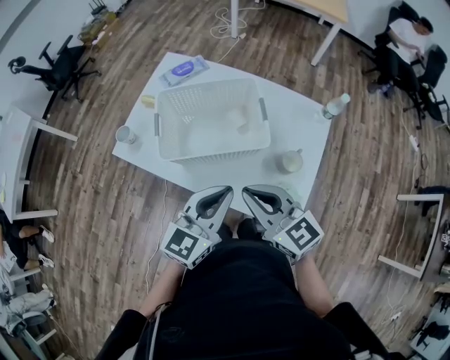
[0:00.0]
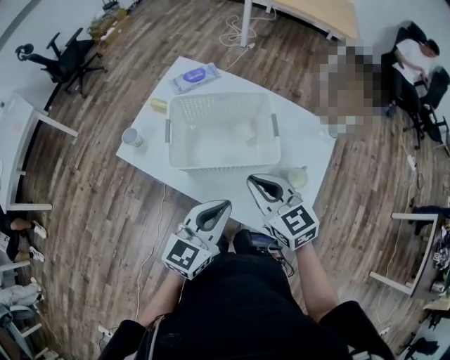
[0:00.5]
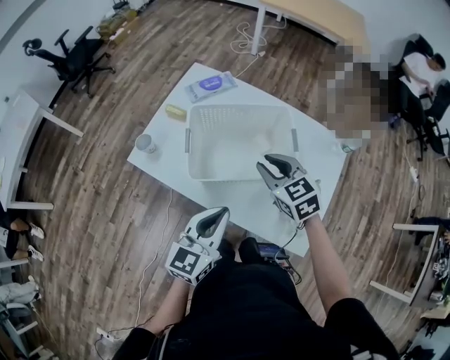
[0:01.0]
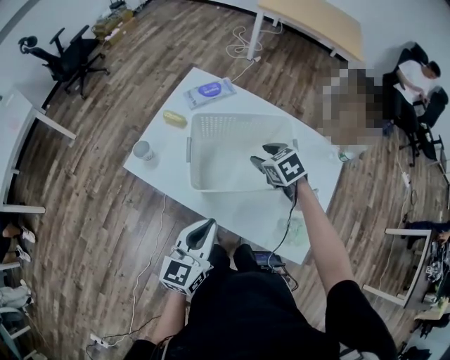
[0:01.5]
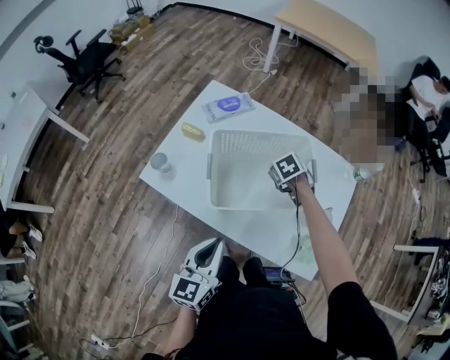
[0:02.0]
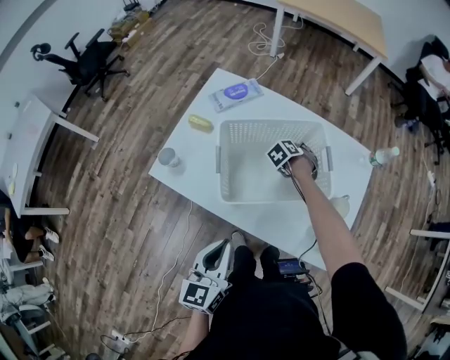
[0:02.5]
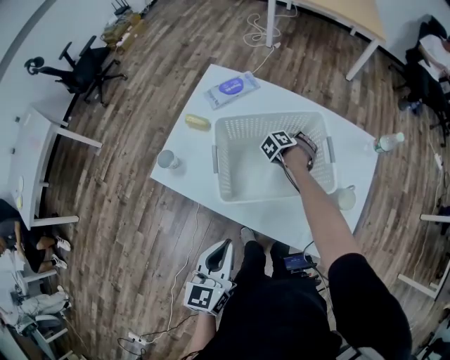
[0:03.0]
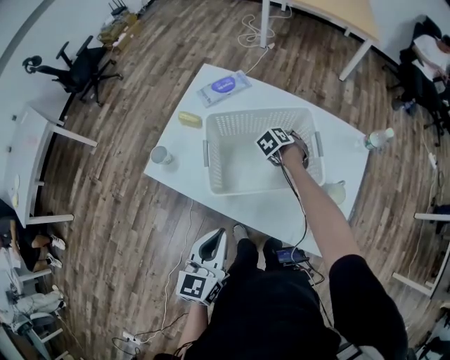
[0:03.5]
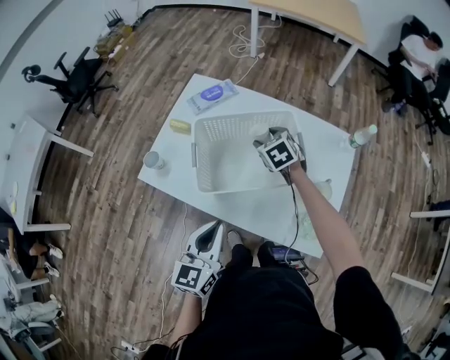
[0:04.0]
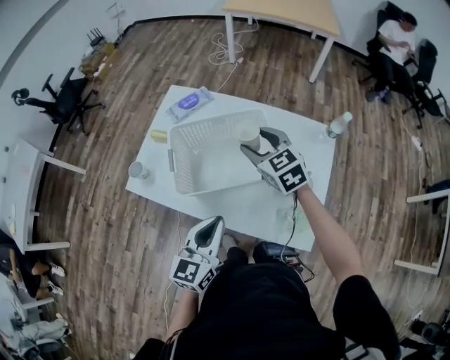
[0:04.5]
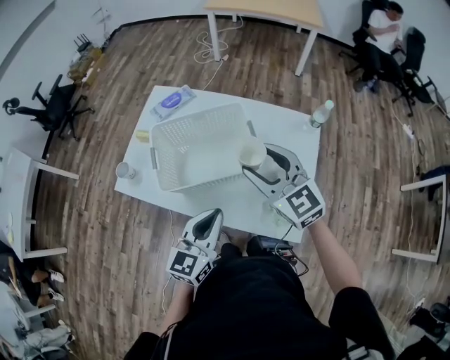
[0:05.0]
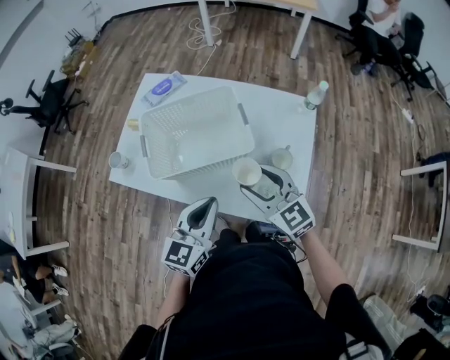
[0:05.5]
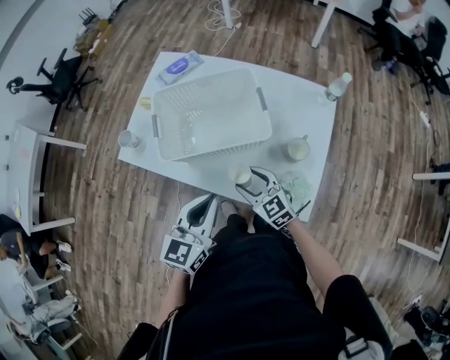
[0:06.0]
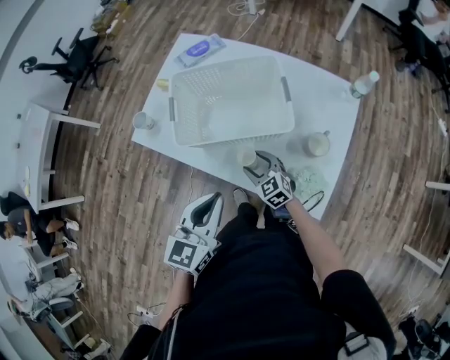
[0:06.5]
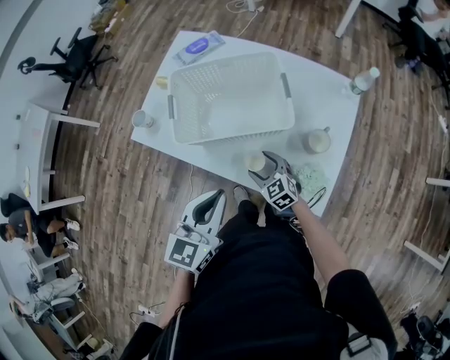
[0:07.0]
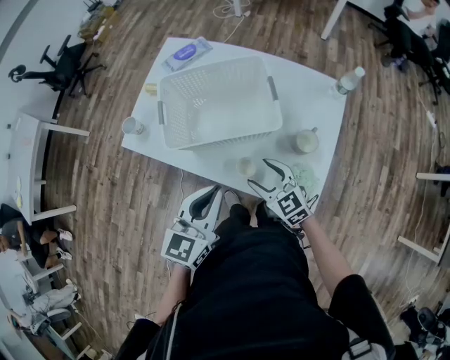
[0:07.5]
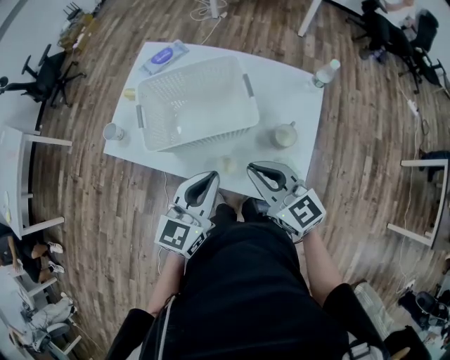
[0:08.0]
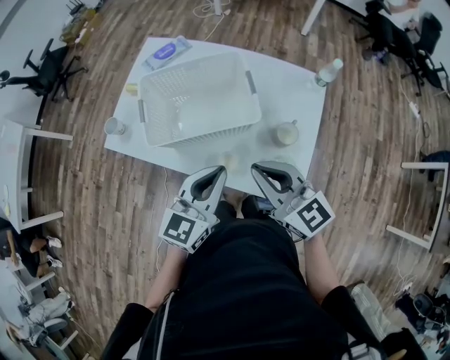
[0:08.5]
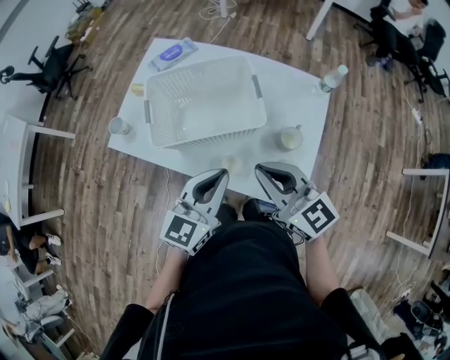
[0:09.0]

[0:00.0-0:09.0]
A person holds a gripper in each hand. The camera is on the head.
0:00.0 to 0:02.0: The right gripper shifts roughly 35 cm forward and downward, angles its fingers downward, by about 60 degrees, and opens up, while the left gripper moves to the left and downward, approximately 20 cm, and turns by roughly 20 degrees.
0:02.0 to 0:04.5: The left gripper shifts by about 10 cm. Meanwhile the right gripper shifts about 20 cm upward, and tilts its fingers approximately 40 degrees upward.
0:04.5 to 0:07.0: The left gripper moves some 5 cm. The right gripper goes roughly 30 cm downward and backward.
0:07.0 to 0:09.0: The left gripper is displaced to the right by some 5 cm. The right gripper heads upward, covering about 30 cm, rotates some 30 degrees, and closes up.

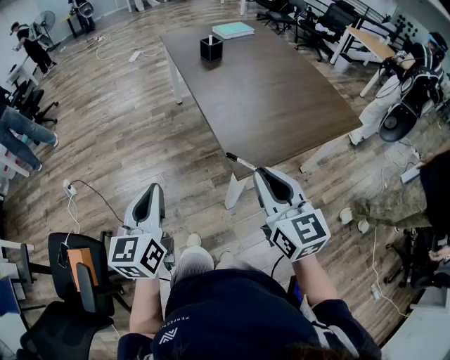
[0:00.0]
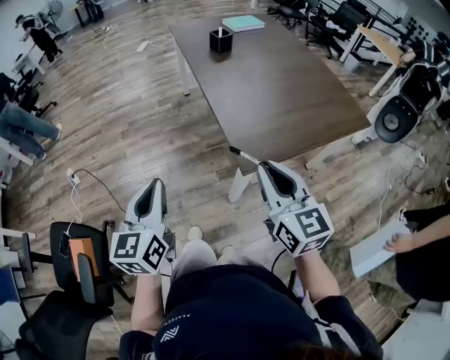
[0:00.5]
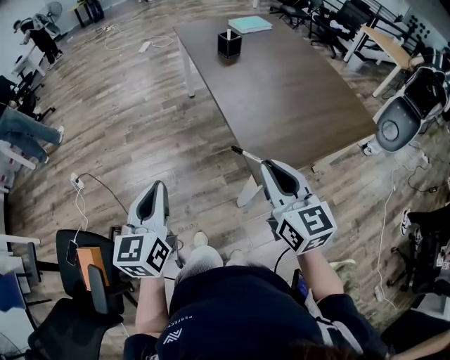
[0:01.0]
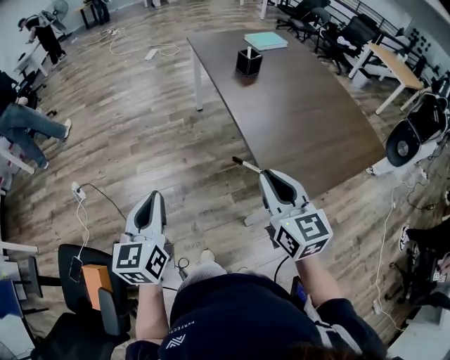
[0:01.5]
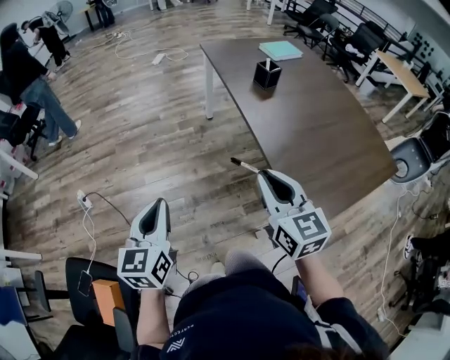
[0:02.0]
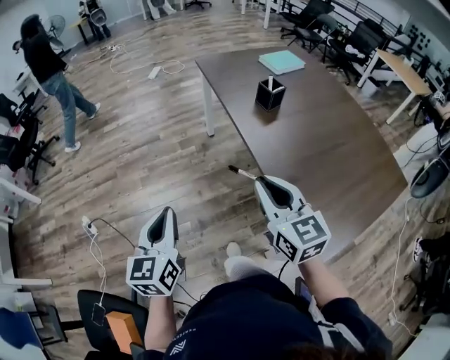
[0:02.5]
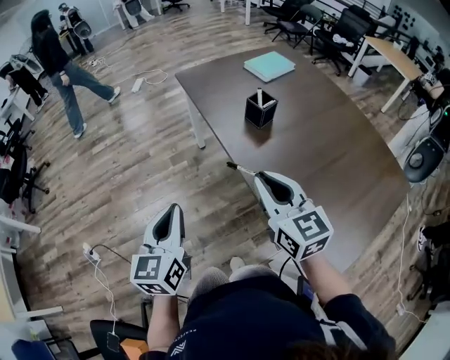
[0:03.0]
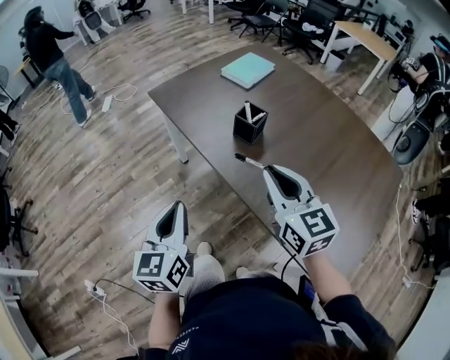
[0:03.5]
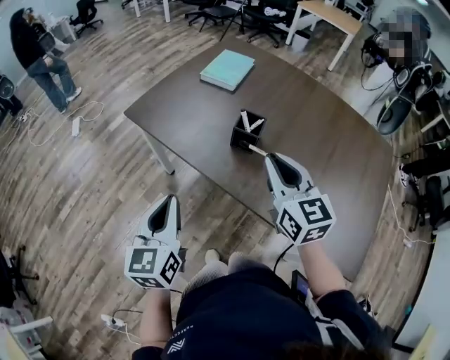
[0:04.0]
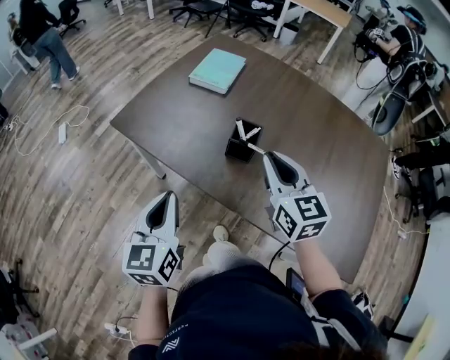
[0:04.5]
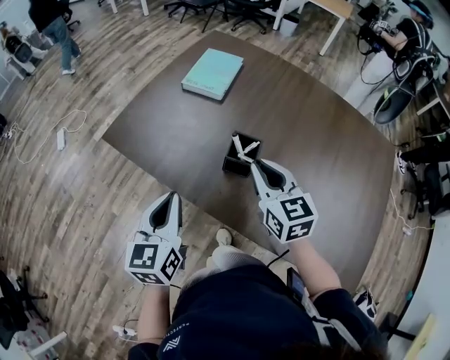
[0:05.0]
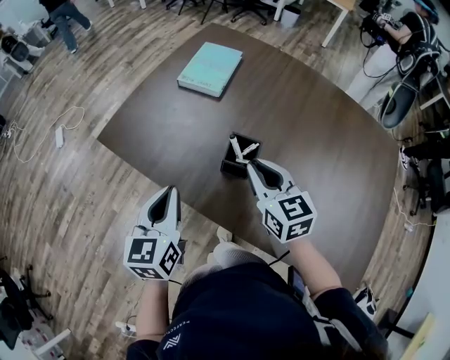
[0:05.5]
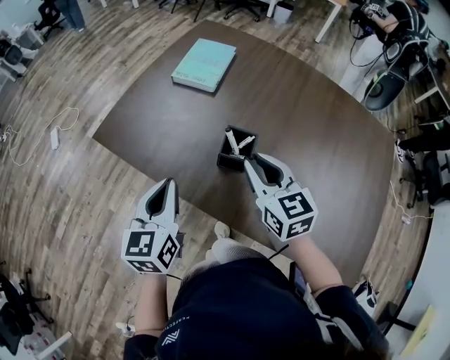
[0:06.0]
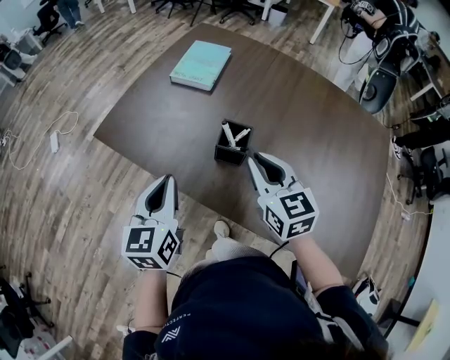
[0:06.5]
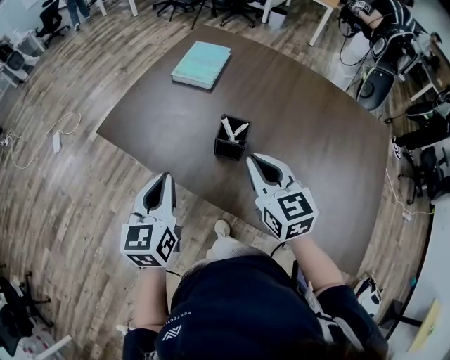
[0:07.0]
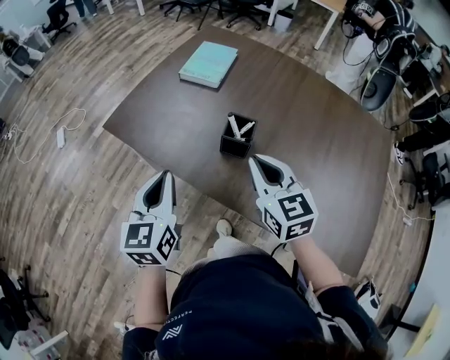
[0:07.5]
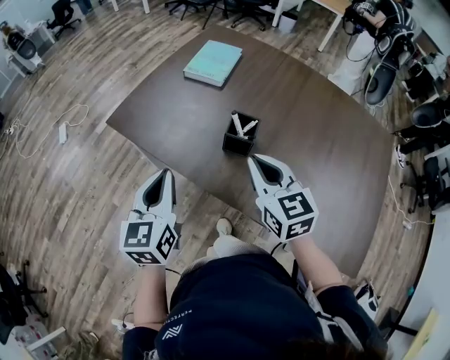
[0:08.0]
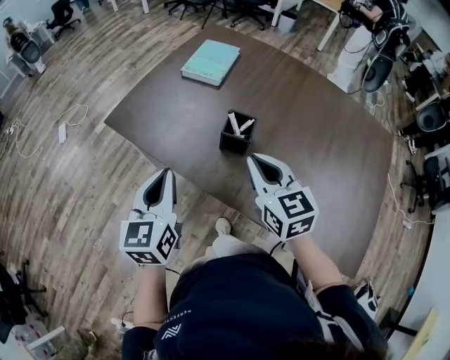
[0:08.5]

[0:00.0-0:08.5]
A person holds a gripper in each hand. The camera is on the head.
0:00.0 to 0:02.0: The grippers both shift forward and to the left by approximately 30 cm.
0:02.0 to 0:04.0: The two grippers travel together, roughly 50 cm. The left gripper turns by some 40 degrees; the right gripper rotates about 40 degrees.
0:04.0 to 0:06.5: The left gripper travels forward by some 15 cm, while the right gripper shifts about 15 cm forward and downward.
0:06.5 to 0:08.5: Both grippers move backward, roughly 5 cm.

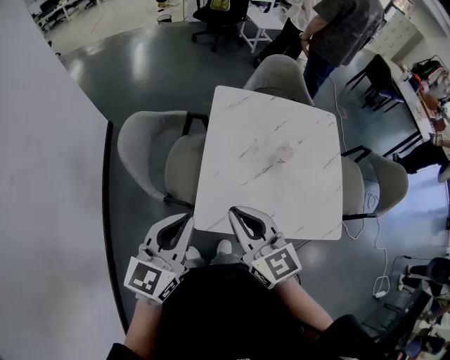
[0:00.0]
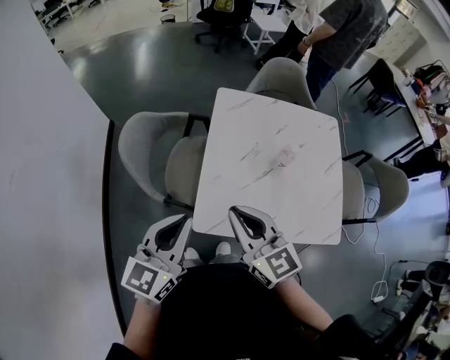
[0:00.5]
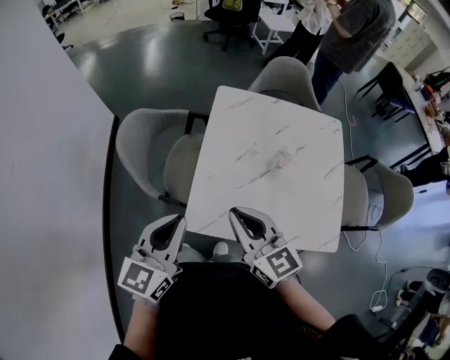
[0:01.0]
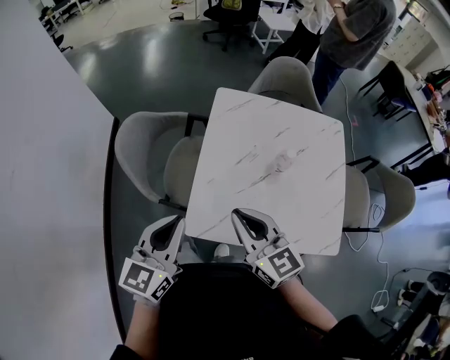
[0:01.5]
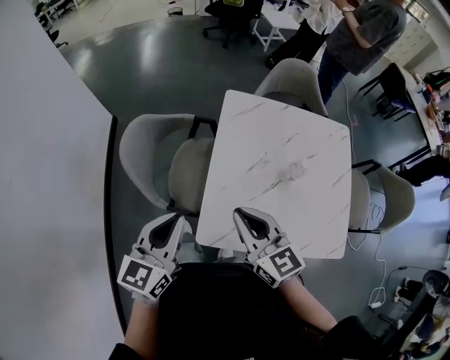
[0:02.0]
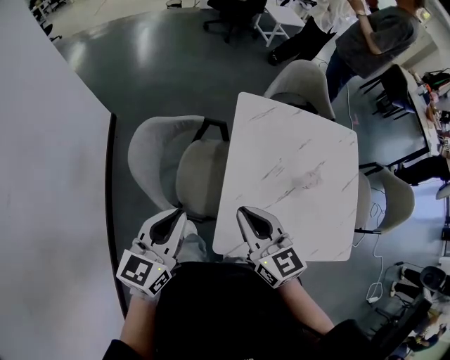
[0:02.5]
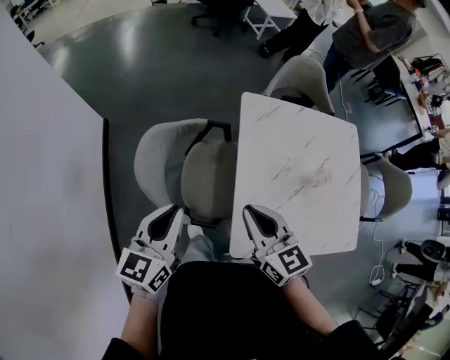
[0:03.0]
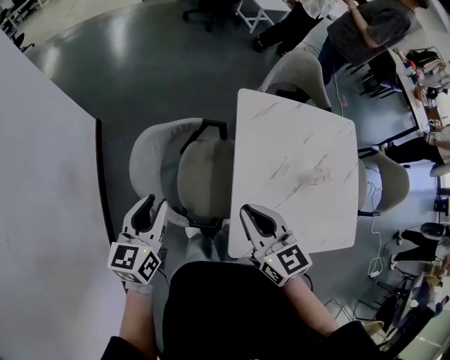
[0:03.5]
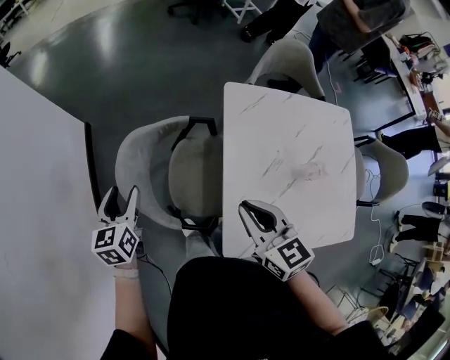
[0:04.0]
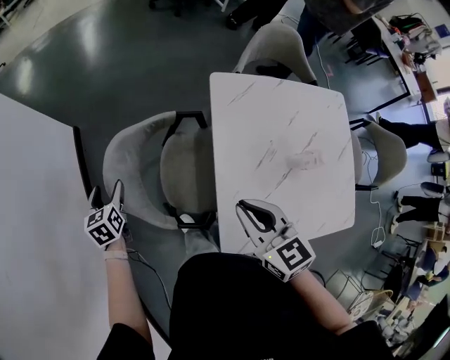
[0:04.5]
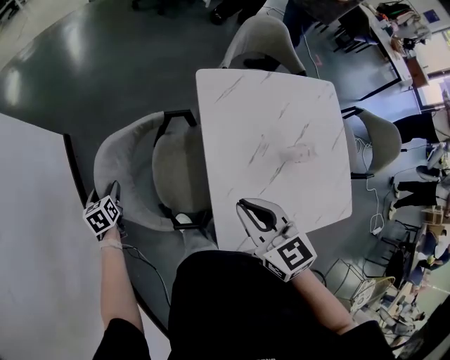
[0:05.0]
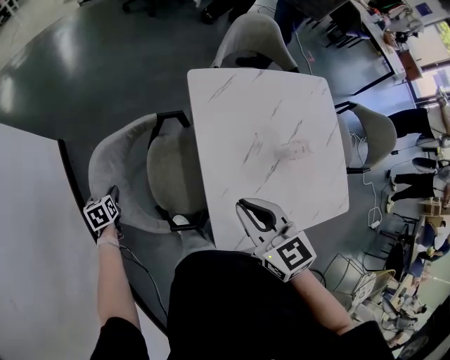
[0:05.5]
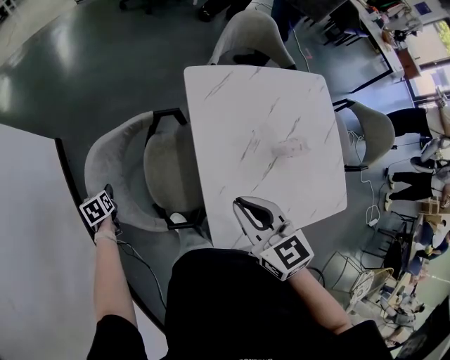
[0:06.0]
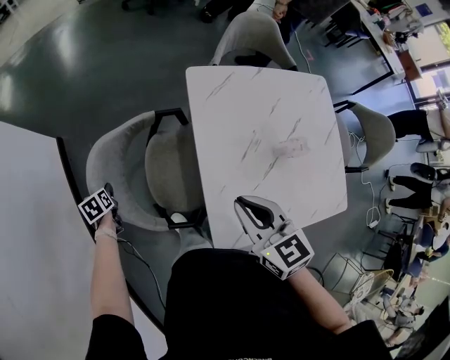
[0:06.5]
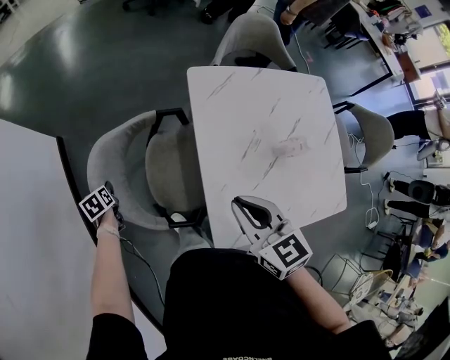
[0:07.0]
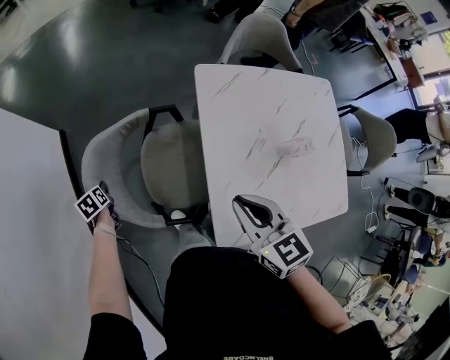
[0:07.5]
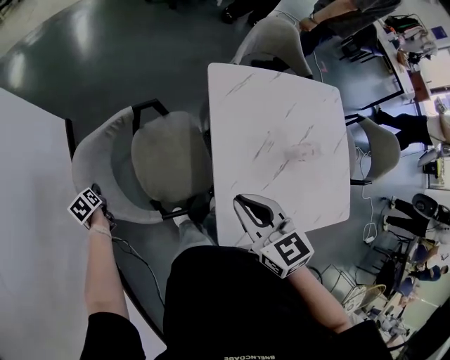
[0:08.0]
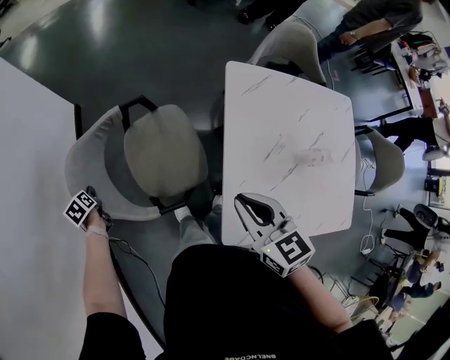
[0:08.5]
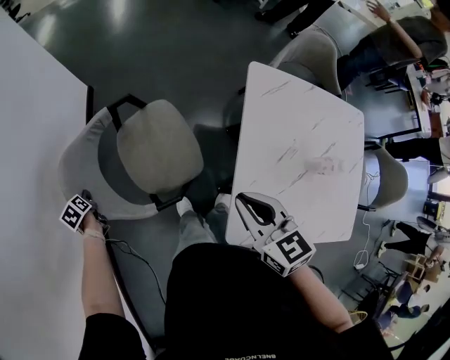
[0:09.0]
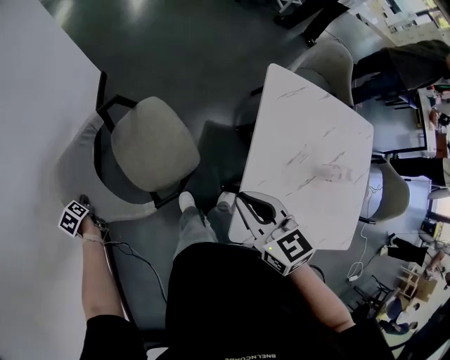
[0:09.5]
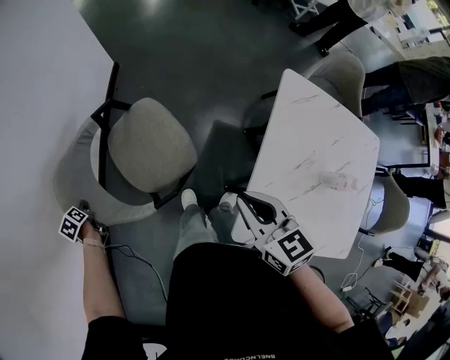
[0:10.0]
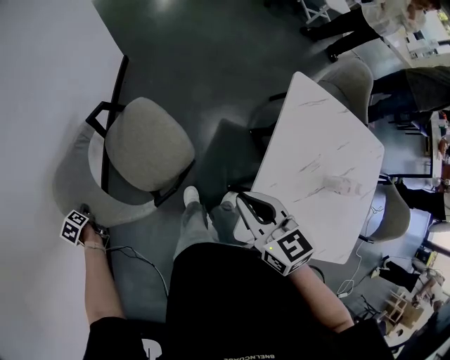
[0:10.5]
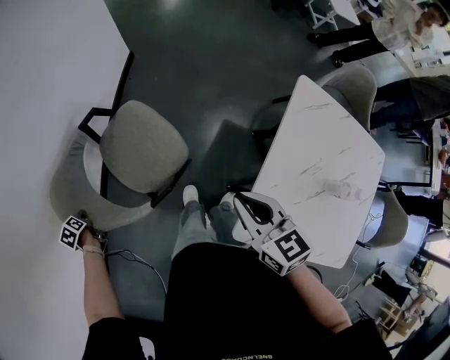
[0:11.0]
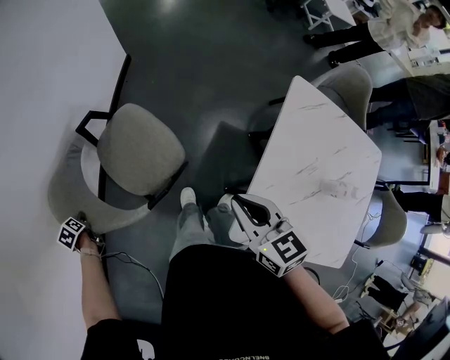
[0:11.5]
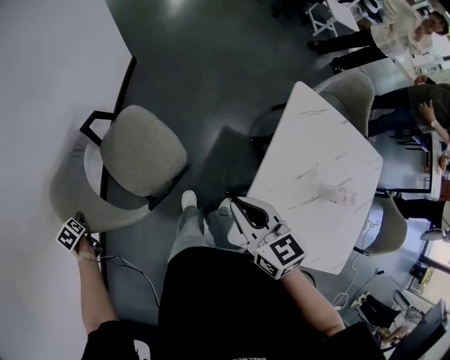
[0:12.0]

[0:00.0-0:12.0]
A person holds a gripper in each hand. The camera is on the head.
0:00.0 to 0:02.0: The grippers both shift forward by some 5 cm.
0:02.0 to 0:04.0: The right gripper is displaced forward and to the left by approximately 15 cm. The left gripper travels to the left, forward and downward by approximately 35 cm, turns by about 20 degrees, and opens.
0:04.0 to 0:06.0: The left gripper heads downward, covering some 25 cm, and tilts its fingers some 30 degrees downward.
0:06.0 to 0:08.0: The left gripper is displaced to the left by approximately 10 cm, and swivels roughly 20 degrees.
0:08.0 to 0:10.0: The right gripper ends up approximately 10 cm from where it was, and changes its angle by some 20 degrees. The left gripper ends up approximately 35 cm from where it was, and turns by some 40 degrees.
0:10.0 to 0:12.0: The left gripper heads to the left and backward, covering some 10 cm.
